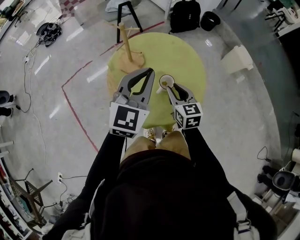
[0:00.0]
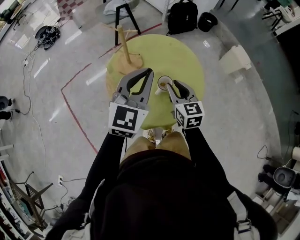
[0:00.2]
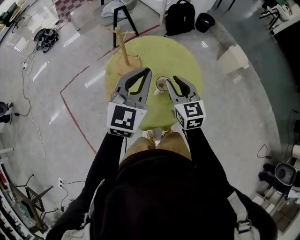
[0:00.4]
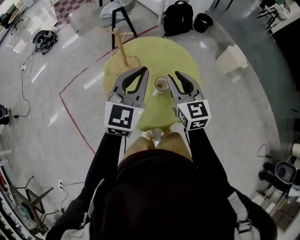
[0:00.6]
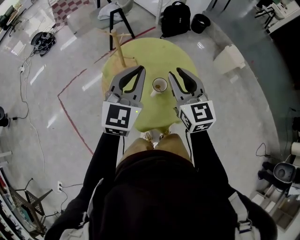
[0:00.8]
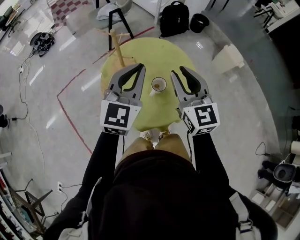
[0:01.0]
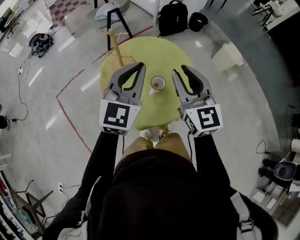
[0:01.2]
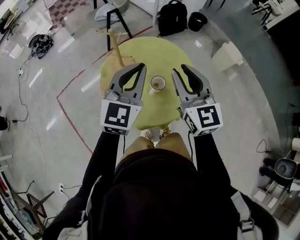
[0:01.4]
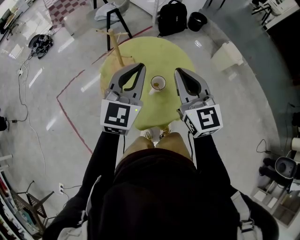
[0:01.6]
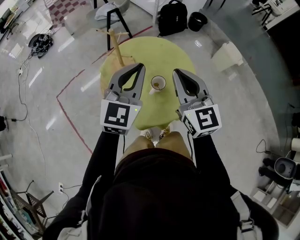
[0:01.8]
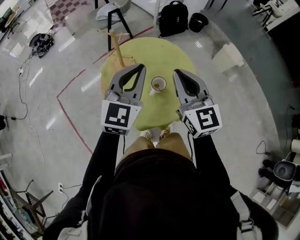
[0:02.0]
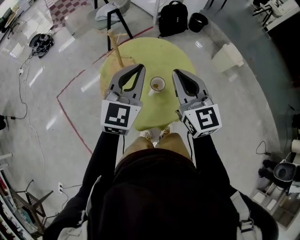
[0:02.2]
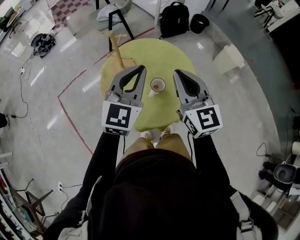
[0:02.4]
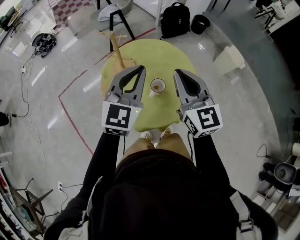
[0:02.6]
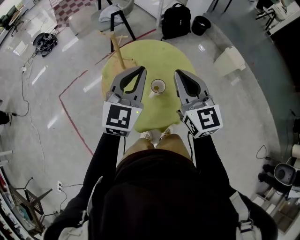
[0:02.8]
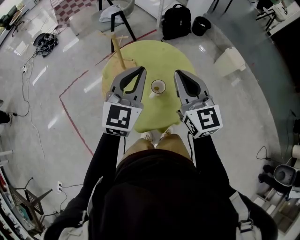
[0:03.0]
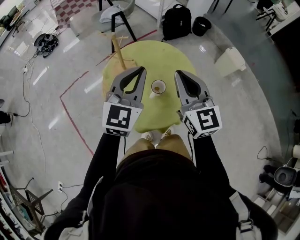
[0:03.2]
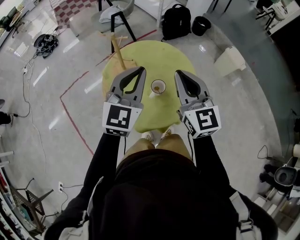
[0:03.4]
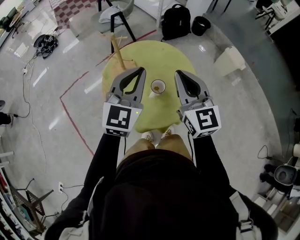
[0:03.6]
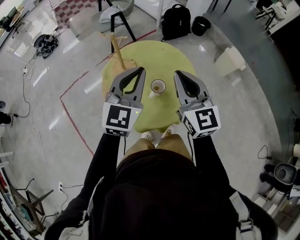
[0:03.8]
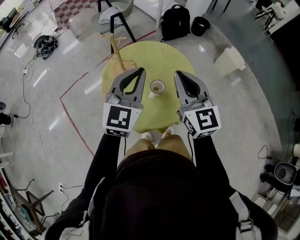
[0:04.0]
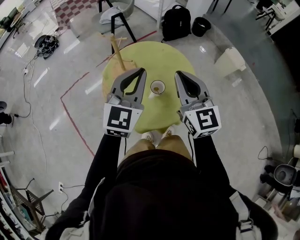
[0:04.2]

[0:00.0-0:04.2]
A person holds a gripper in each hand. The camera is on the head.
0:00.0 to 0:01.4: The right gripper goes approximately 20 cm upward, and swivels approximately 30 degrees.
0:01.4 to 0:02.8: The right gripper closes its fingers.
0:02.8 to 0:04.2: Both grippers stay put.

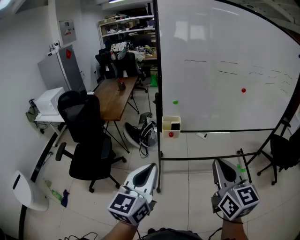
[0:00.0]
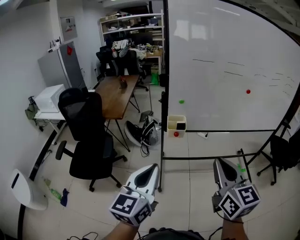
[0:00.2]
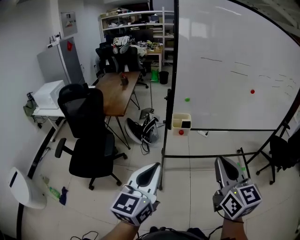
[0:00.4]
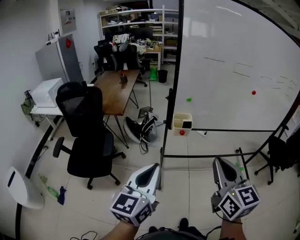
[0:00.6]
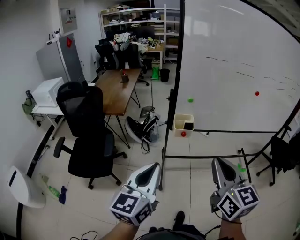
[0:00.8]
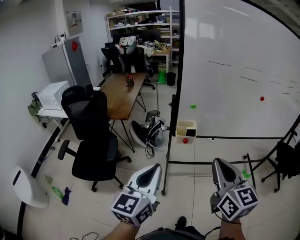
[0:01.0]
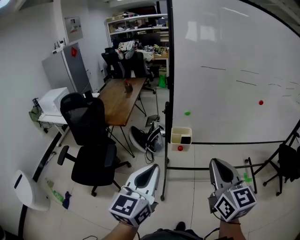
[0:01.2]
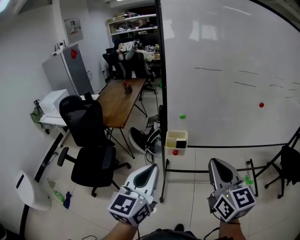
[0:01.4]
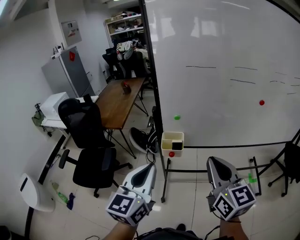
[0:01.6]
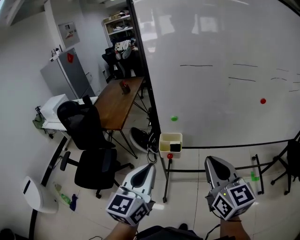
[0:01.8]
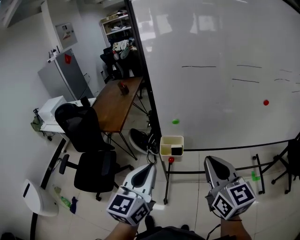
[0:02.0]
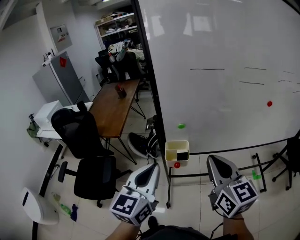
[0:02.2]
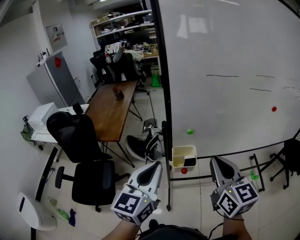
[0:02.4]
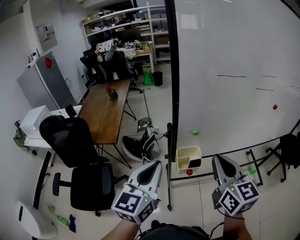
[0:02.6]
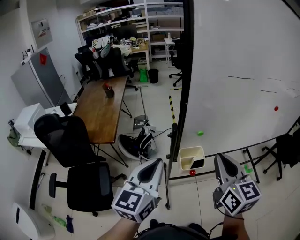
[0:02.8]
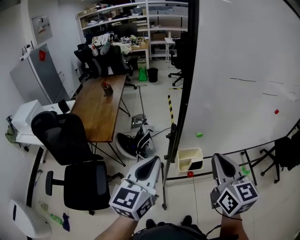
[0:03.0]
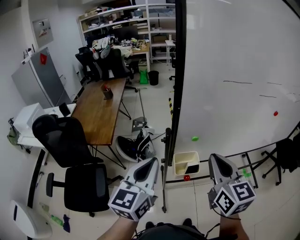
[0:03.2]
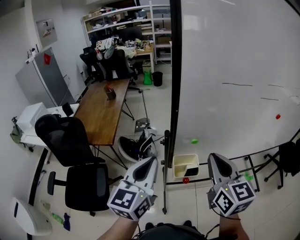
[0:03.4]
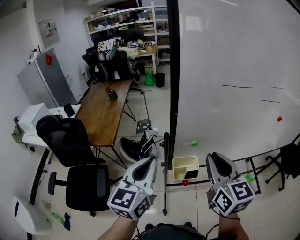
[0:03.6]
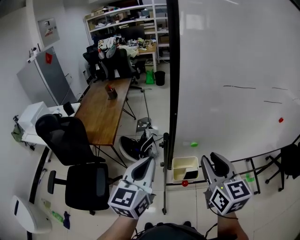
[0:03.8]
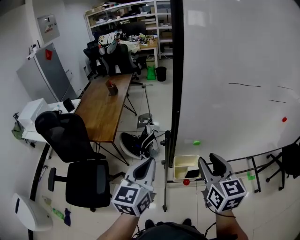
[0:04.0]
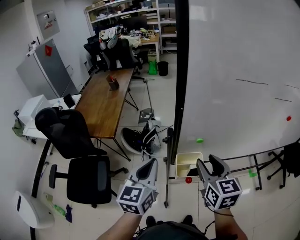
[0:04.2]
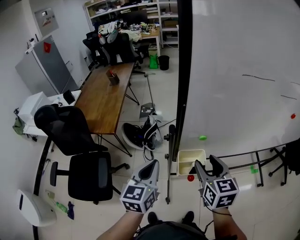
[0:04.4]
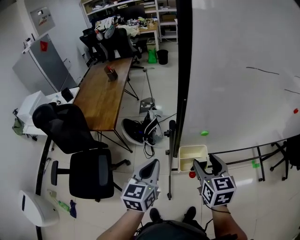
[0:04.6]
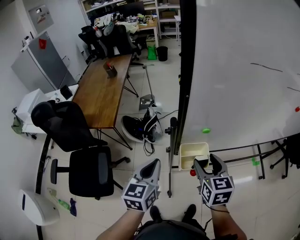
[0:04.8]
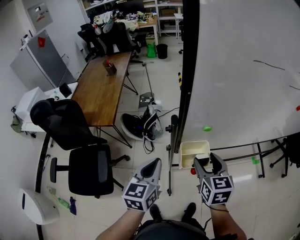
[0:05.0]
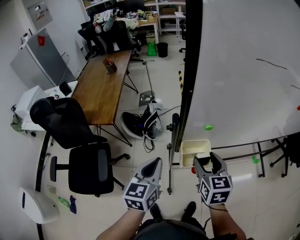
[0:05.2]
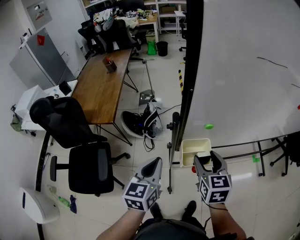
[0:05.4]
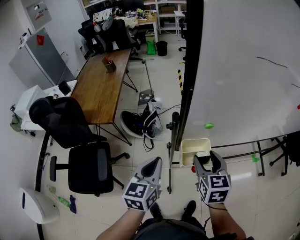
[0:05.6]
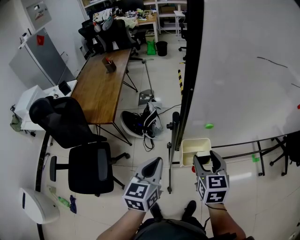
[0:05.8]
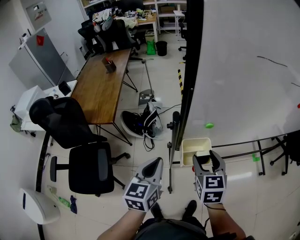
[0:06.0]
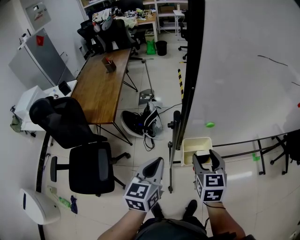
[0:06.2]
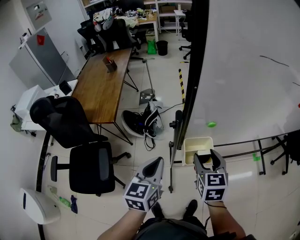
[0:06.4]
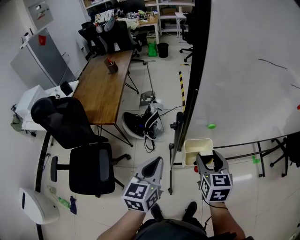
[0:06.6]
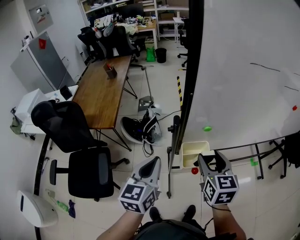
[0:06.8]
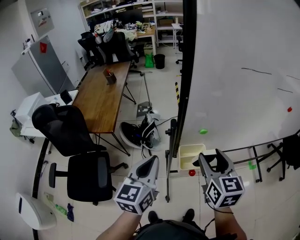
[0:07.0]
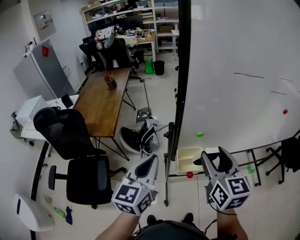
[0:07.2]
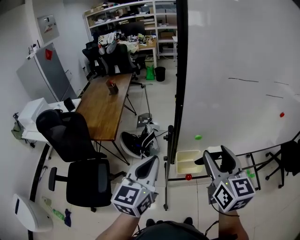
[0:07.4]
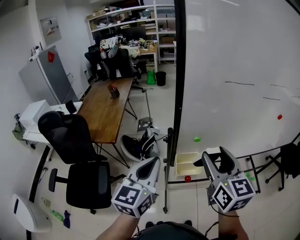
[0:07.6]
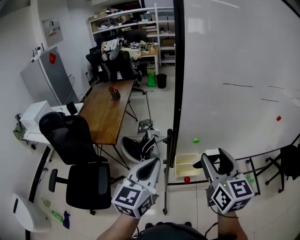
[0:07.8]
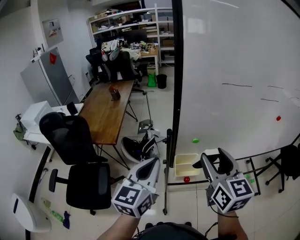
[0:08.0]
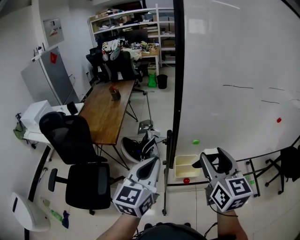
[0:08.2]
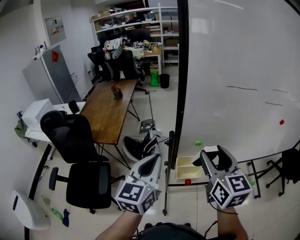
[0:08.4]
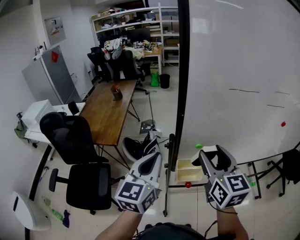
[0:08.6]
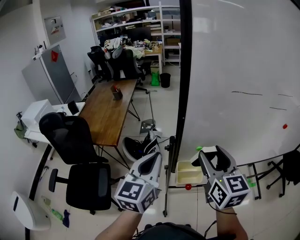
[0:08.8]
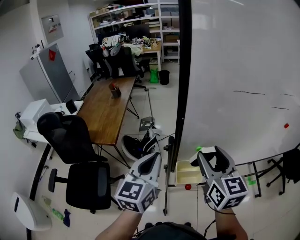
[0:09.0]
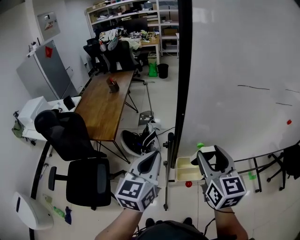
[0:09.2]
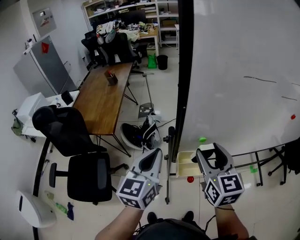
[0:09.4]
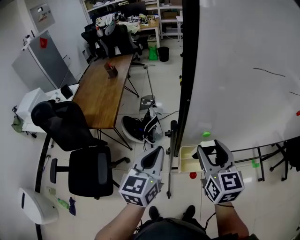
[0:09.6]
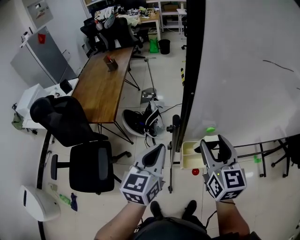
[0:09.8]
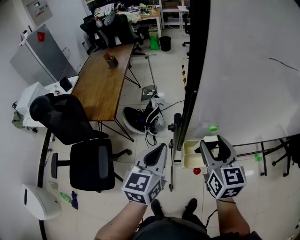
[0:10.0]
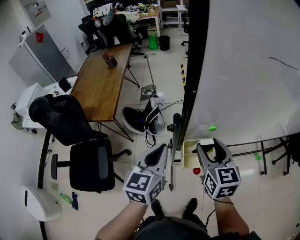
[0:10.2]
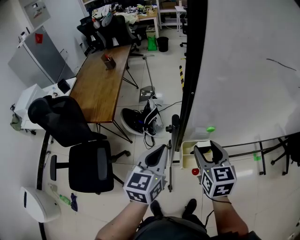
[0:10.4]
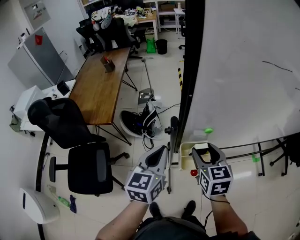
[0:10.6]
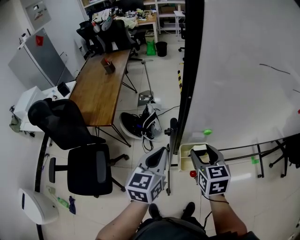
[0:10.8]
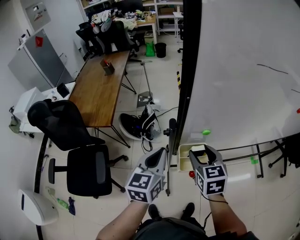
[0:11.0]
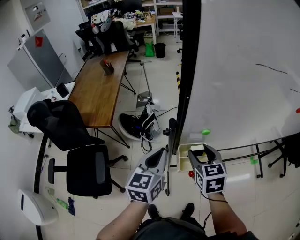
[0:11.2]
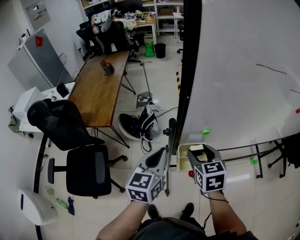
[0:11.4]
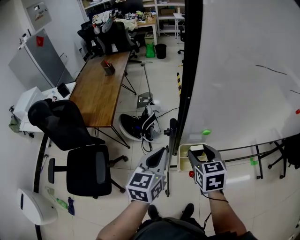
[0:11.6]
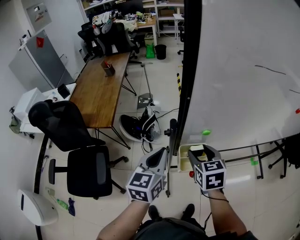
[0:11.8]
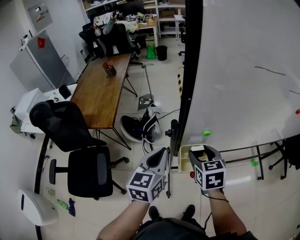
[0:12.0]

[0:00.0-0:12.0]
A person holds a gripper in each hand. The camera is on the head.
0:00.0 to 0:01.6: Both grippers travel together forward, some 25 cm.
0:01.6 to 0:03.0: The grippers both shift forward and to the left by roughly 30 cm.
0:03.0 to 0:04.4: Both grippers move downward and forward, approximately 15 cm. The right gripper opens up.
0:04.4 to 0:06.0: Both grippers move downward, about 5 cm.
0:06.0 to 0:07.6: Both grippers travel together upward, some 20 cm. The right gripper rotates approximately 30 degrees.
0:07.6 to 0:09.0: Both grippers move forward, approximately 10 cm.
0:09.0 to 0:10.4: Both grippers travel together downward, roughly 15 cm.
0:10.4 to 0:12.0: The grippers stay close to where they were, moving slightly.

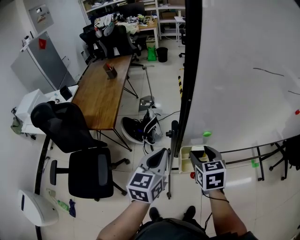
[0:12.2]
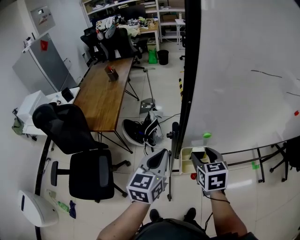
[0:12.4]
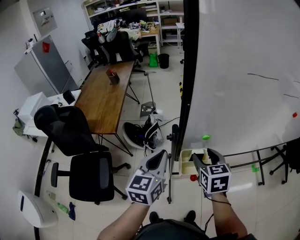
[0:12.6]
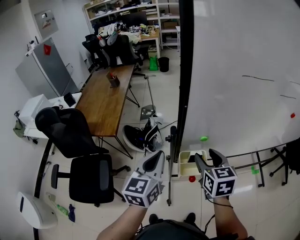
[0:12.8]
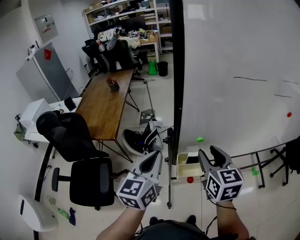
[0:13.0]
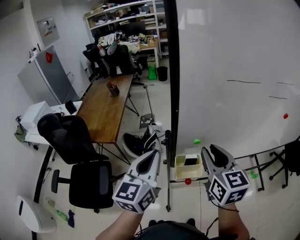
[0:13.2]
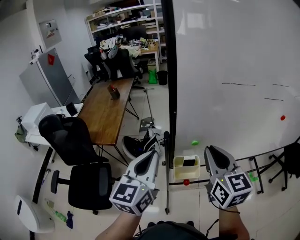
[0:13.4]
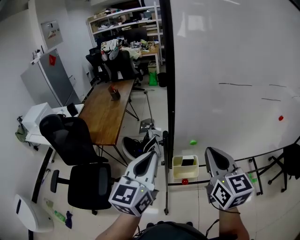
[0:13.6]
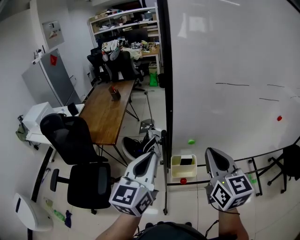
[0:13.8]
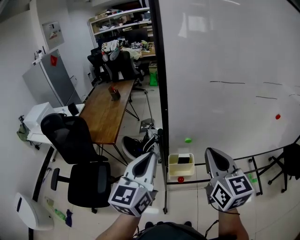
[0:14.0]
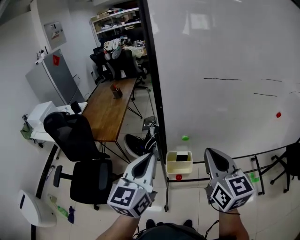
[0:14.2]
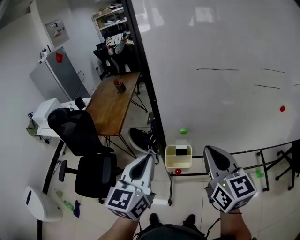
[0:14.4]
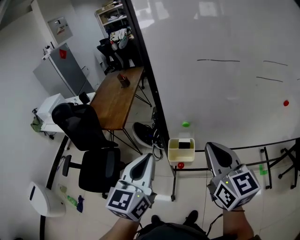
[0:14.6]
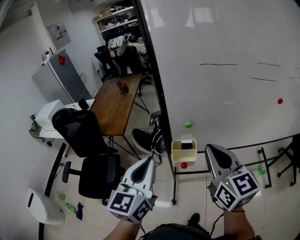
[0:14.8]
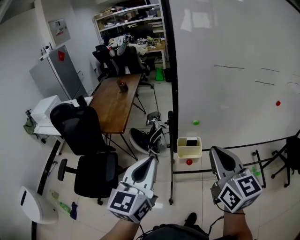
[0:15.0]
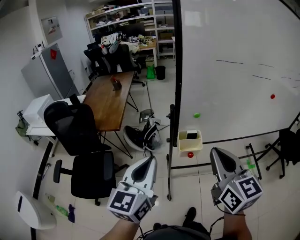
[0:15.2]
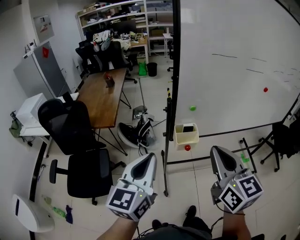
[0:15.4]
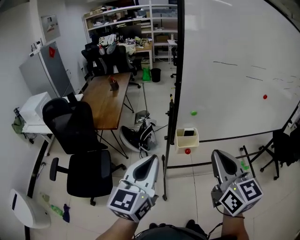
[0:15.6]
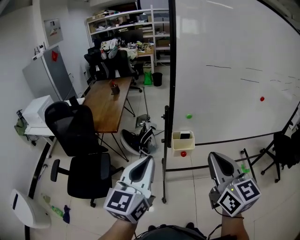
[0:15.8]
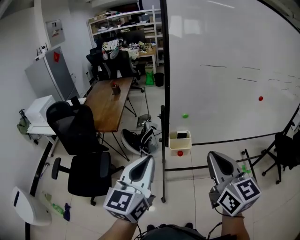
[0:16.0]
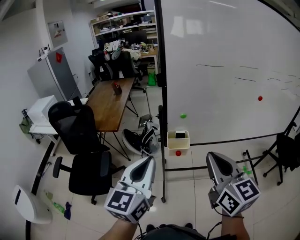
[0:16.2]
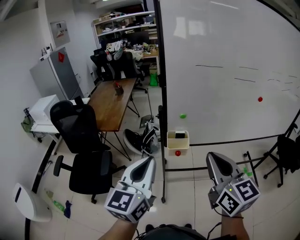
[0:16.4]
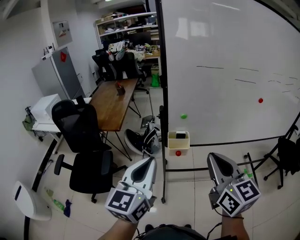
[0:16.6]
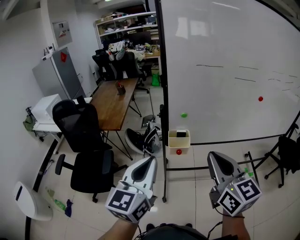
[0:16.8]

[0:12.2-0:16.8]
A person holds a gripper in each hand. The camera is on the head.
0:12.2 to 0:13.8: Both grippers travel together upward and backward, approximately 25 cm. The right gripper angles its fingers upward, by some 30 degrees, and closes its fingers.
0:13.8 to 0:15.2: Both grippers travel together backward, roughly 15 cm.
0:15.2 to 0:16.8: The left gripper moves backward, to the right and upward, approximately 15 cm. Meanwhile the right gripper heads backward and to the right, covering about 15 cm.

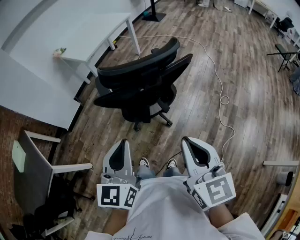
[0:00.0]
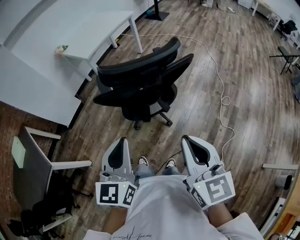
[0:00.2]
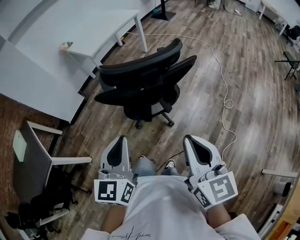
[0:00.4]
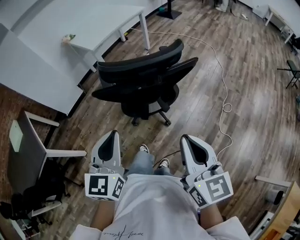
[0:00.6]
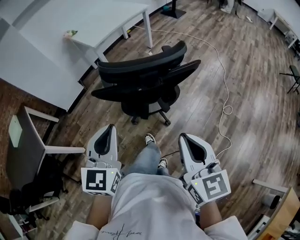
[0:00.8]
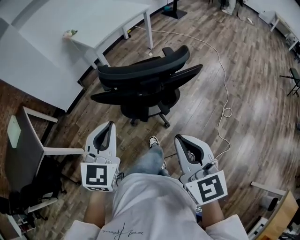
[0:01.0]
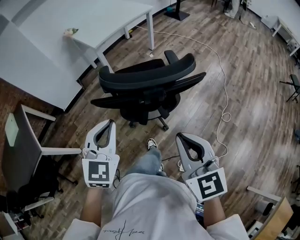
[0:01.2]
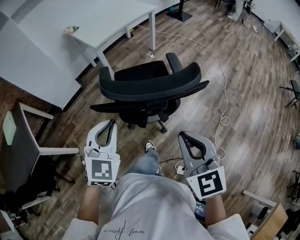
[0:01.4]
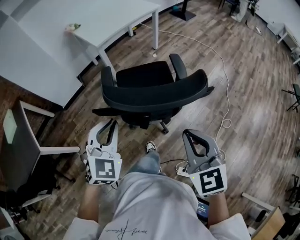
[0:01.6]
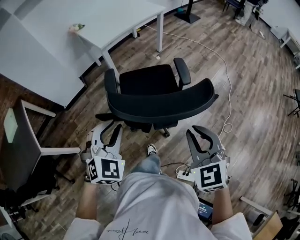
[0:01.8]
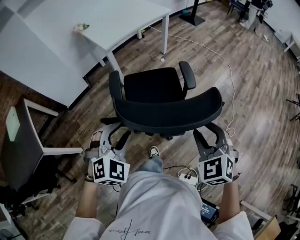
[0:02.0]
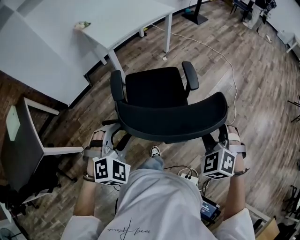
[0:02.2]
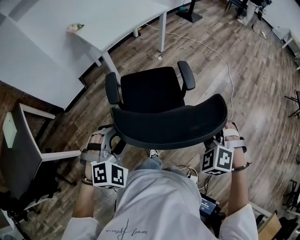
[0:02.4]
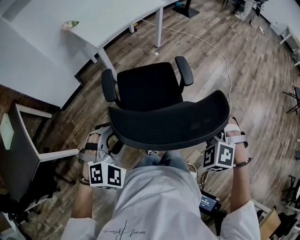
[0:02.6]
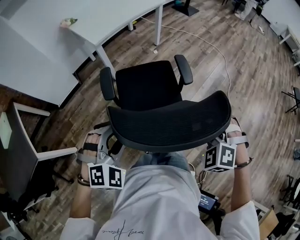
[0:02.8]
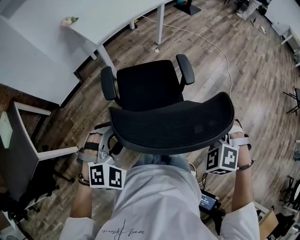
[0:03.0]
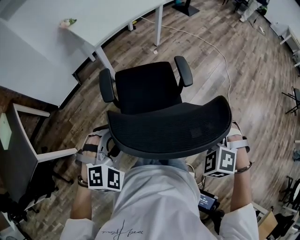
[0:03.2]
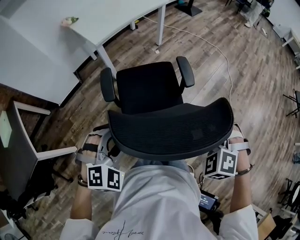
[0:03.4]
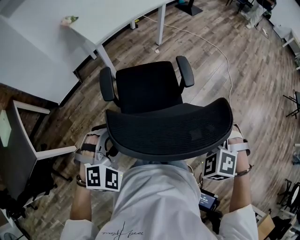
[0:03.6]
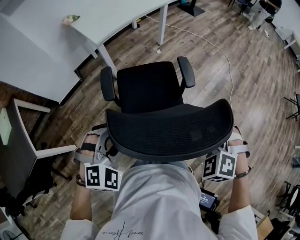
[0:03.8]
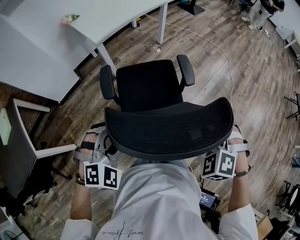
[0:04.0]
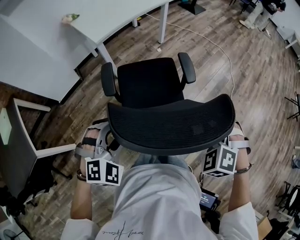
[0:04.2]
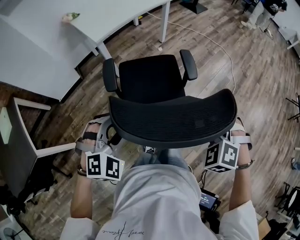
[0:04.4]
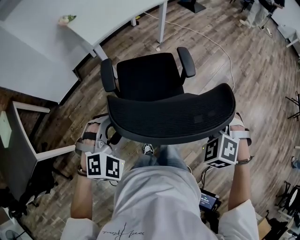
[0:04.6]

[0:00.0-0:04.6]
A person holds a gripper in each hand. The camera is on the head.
0:00.0 to 0:01.6: The grippers both shift forward by approximately 20 cm. The right gripper rotates some 30 degrees, while the left gripper turns by about 40 degrees.
0:01.6 to 0:03.0: The left gripper is displaced downward and forward by about 10 cm, swivels some 30 degrees, and opens. The right gripper heads forward and downward, covering approximately 15 cm, rolls counterclockwise, seen from behind, by about 40 degrees, and opens its fingers.
0:03.0 to 0:04.6: Both grippers move forward, approximately 10 cm.
